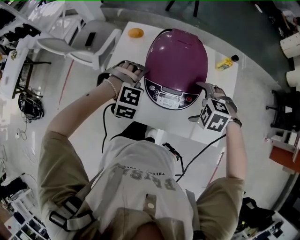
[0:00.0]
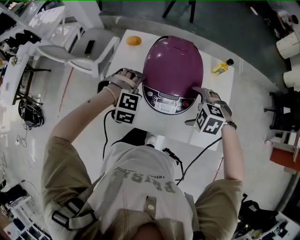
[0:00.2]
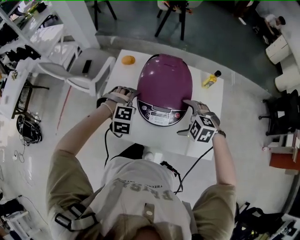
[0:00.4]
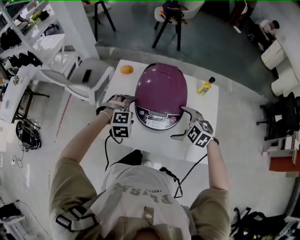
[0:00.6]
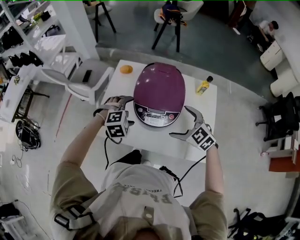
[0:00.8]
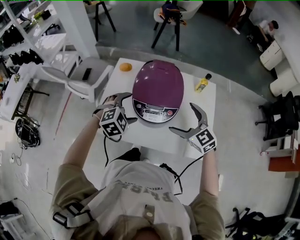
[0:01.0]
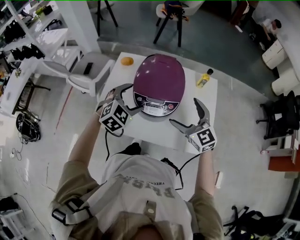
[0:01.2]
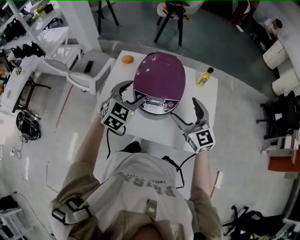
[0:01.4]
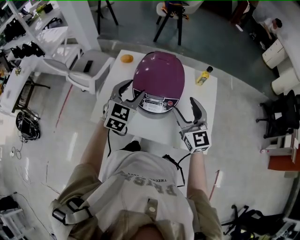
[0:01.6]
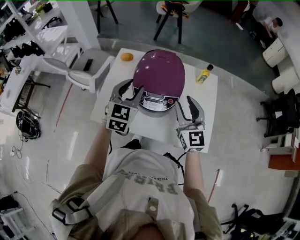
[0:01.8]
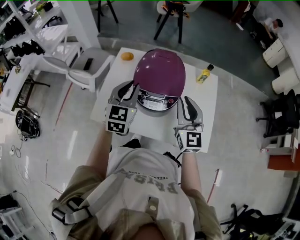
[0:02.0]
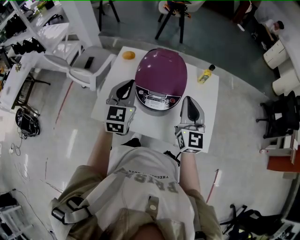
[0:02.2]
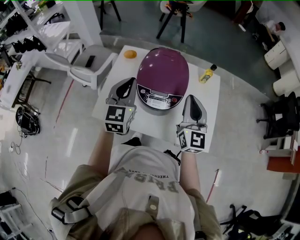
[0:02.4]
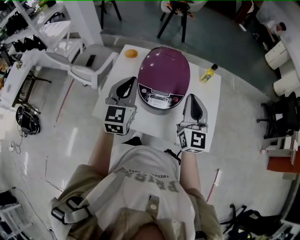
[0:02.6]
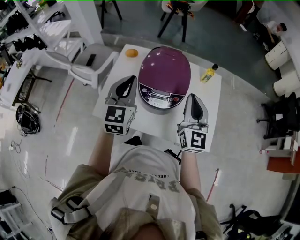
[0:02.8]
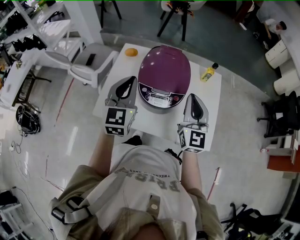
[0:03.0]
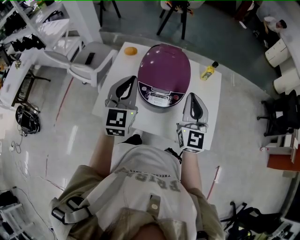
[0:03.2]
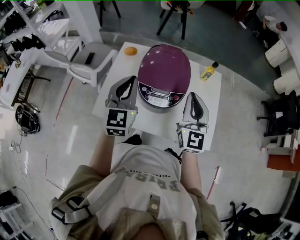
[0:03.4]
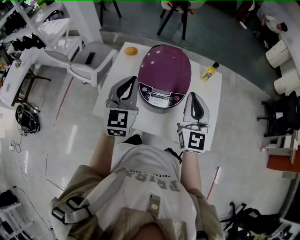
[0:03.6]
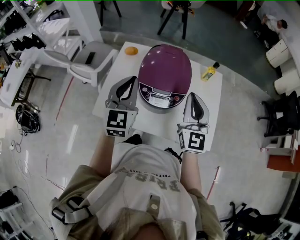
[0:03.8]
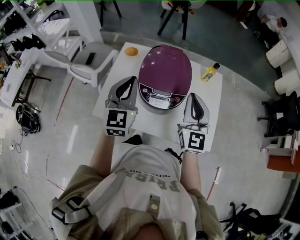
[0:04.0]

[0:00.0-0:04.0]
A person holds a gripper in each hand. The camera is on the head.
0:00.0 to 0:01.4: The grippers both shift upward by approximately 10 cm. The right gripper tips its fingers upward by roughly 60 degrees. Meanwhile the left gripper points its fingers approximately 40 degrees further upward.
0:01.4 to 0:02.6: The grippers both shift upward by roughly 5 cm. The left gripper swivels approximately 30 degrees, and closes up, while the right gripper changes its angle by some 30 degrees, and closes.
0:02.6 to 0:04.0: The grippers move only a little.

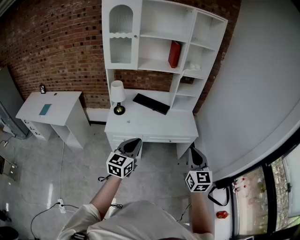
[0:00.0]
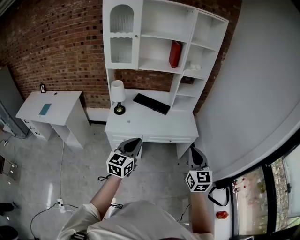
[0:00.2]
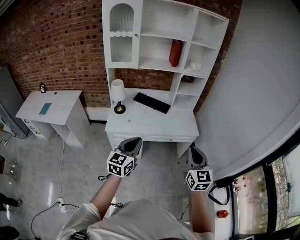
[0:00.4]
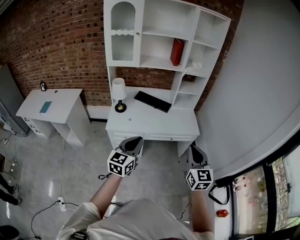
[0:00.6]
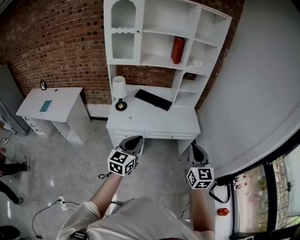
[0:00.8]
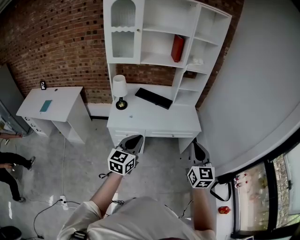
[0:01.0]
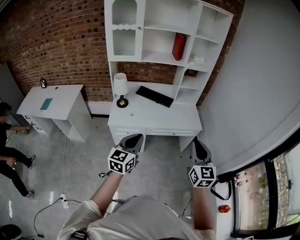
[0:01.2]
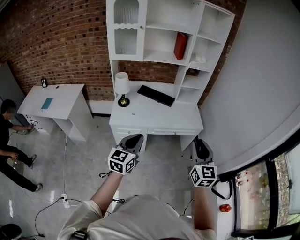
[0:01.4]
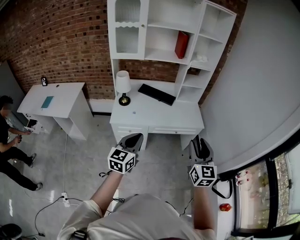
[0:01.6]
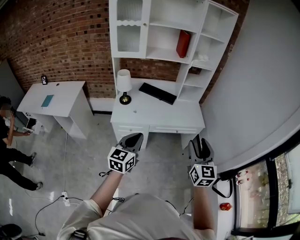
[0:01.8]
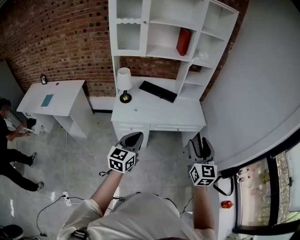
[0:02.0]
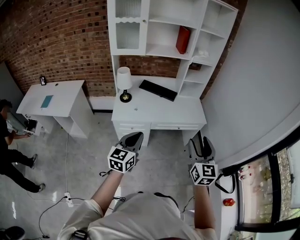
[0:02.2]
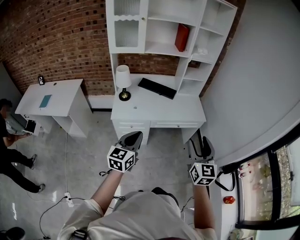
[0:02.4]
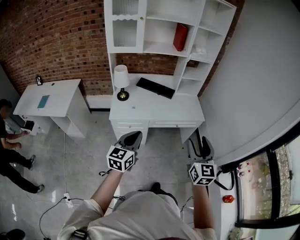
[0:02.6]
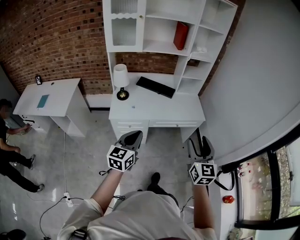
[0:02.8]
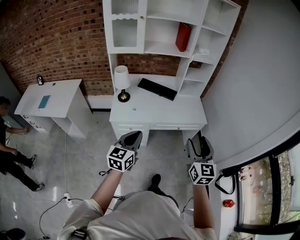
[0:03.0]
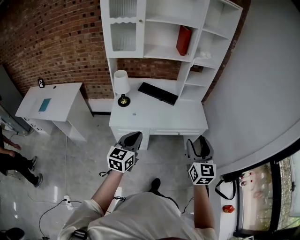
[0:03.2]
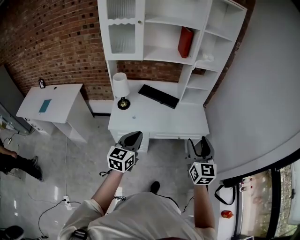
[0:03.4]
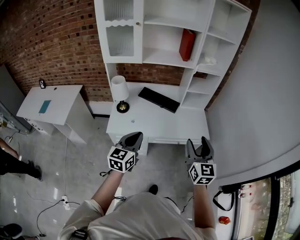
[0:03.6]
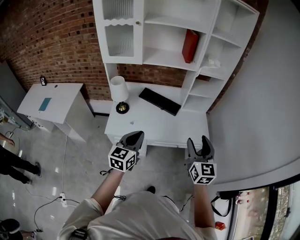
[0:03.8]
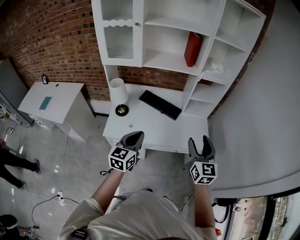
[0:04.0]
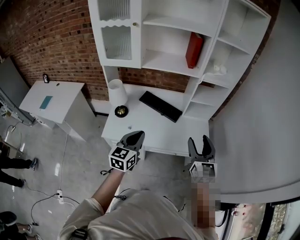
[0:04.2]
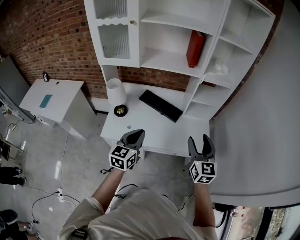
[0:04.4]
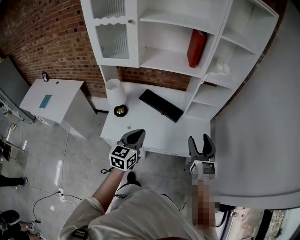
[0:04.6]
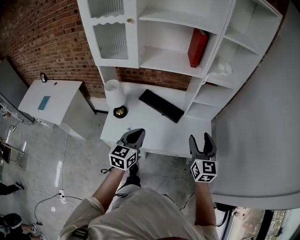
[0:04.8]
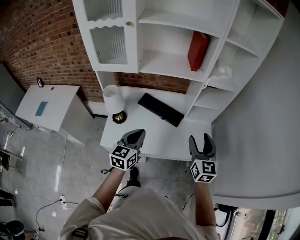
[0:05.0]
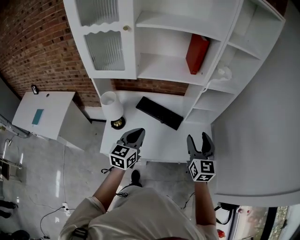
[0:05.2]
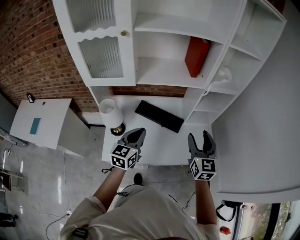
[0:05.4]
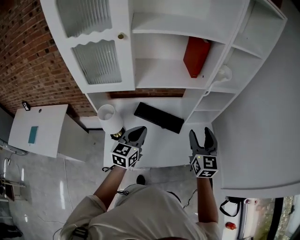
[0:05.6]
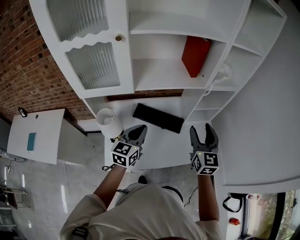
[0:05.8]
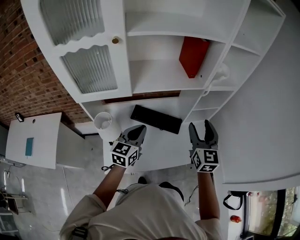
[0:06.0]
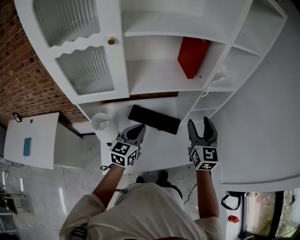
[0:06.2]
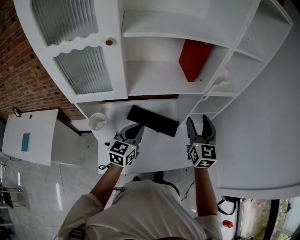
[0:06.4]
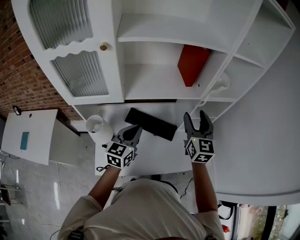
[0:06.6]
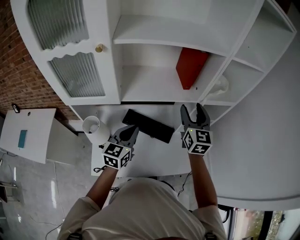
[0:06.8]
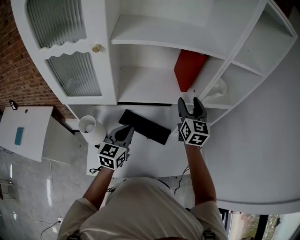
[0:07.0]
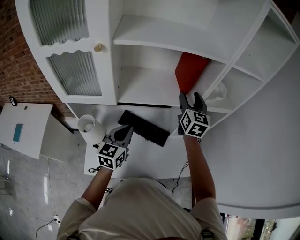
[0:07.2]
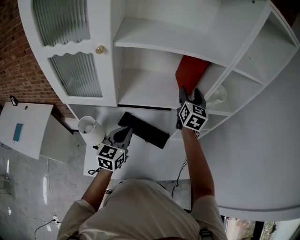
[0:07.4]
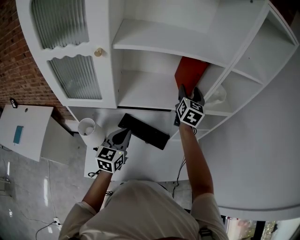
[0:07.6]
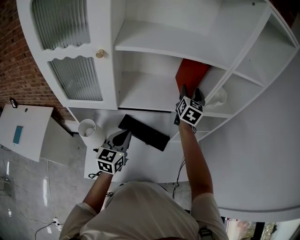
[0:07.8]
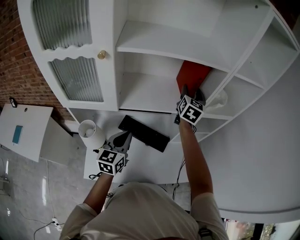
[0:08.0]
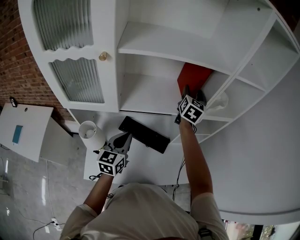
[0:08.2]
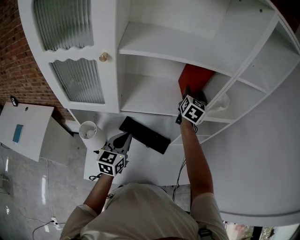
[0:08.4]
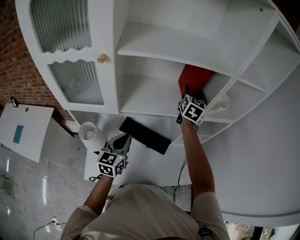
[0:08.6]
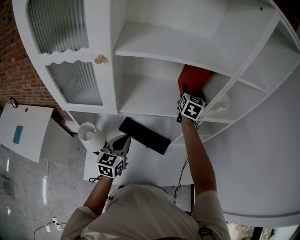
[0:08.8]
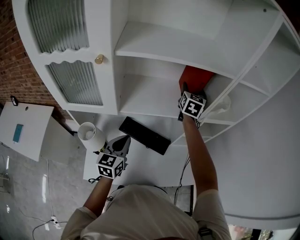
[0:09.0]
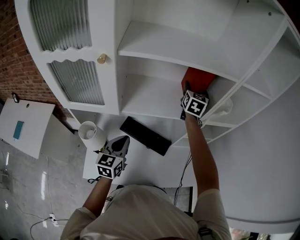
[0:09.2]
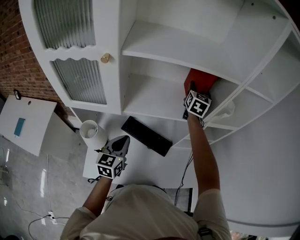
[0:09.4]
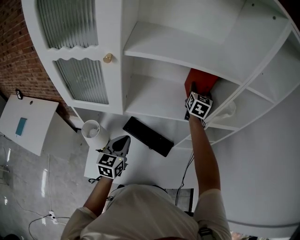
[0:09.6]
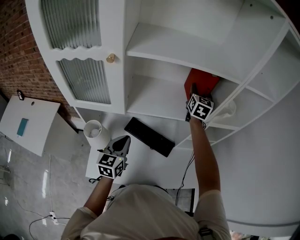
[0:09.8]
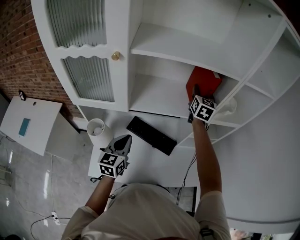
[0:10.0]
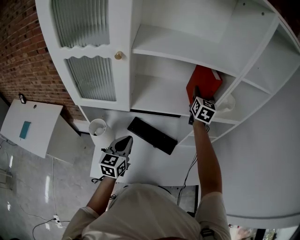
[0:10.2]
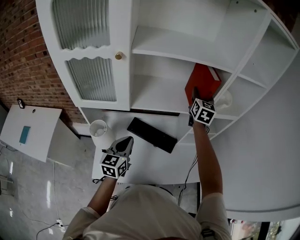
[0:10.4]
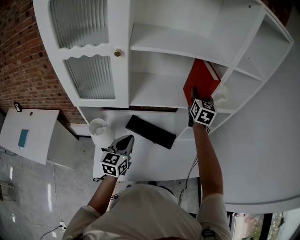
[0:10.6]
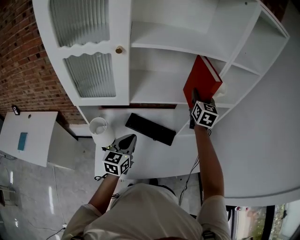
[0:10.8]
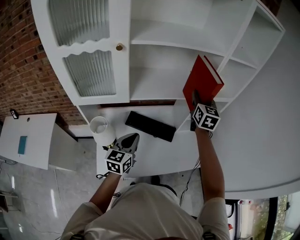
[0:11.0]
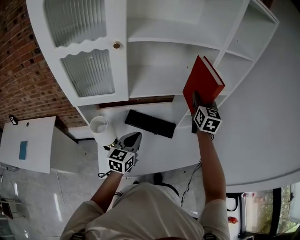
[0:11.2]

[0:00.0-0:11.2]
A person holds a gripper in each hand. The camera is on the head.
0:00.0 to 0:01.6: The right gripper opens.
0:01.6 to 0:03.2: The two grippers go about 10 cm forward.
0:03.2 to 0:04.8: Both grippers travel together forward, roughly 30 cm.
0:04.8 to 0:06.4: Both grippers travel together forward and to the left, approximately 25 cm.
0:06.4 to 0:08.0: The right gripper heads forward, covering approximately 25 cm.
0:08.0 to 0:09.6: The right gripper shifts some 5 cm forward, and closes up.
0:09.6 to 0:11.2: The right gripper shifts approximately 25 cm backward. Meanwhile the left gripper moves backward, approximately 10 cm.

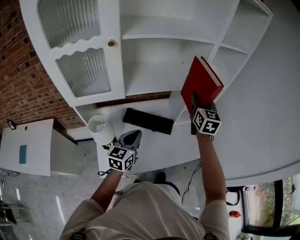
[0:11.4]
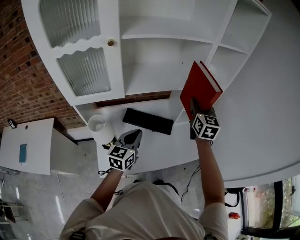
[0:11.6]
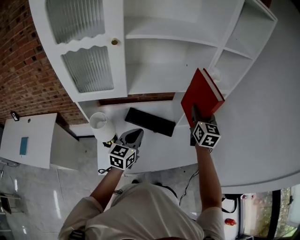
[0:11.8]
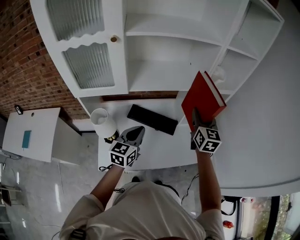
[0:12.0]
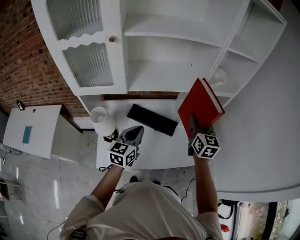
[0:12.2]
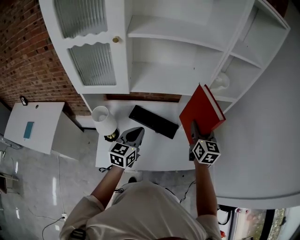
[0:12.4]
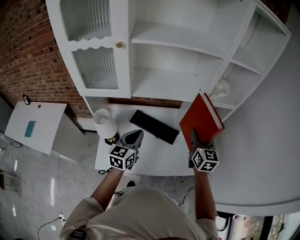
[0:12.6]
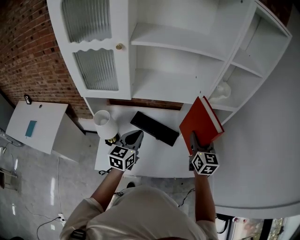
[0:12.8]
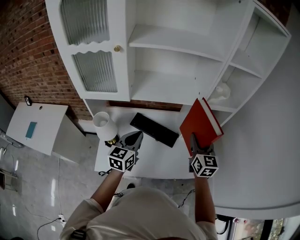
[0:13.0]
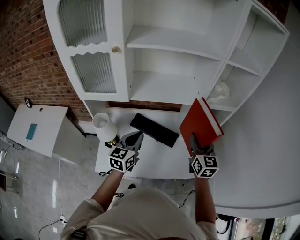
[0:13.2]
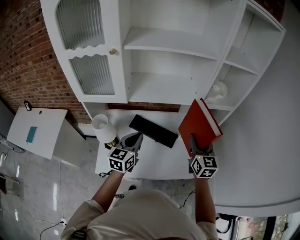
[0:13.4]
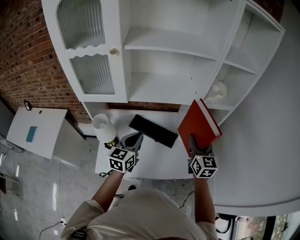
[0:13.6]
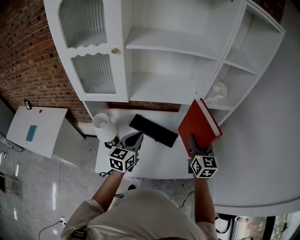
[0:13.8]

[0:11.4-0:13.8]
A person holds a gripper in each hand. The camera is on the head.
0:11.4 to 0:12.6: The right gripper goes about 10 cm downward and backward.
0:12.6 to 0:13.8: The grippers stay close to where they were, moving slightly.

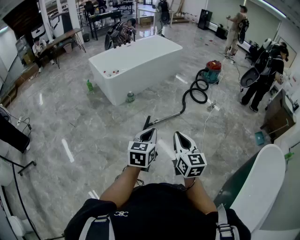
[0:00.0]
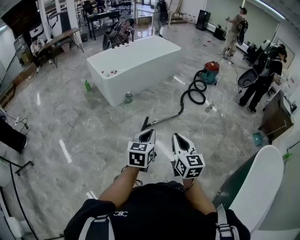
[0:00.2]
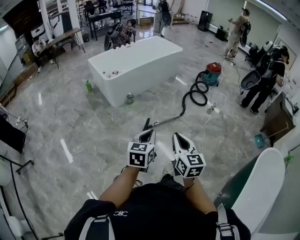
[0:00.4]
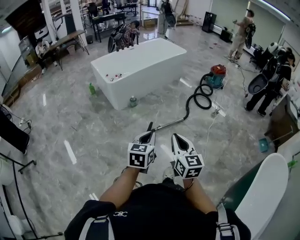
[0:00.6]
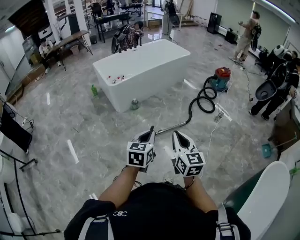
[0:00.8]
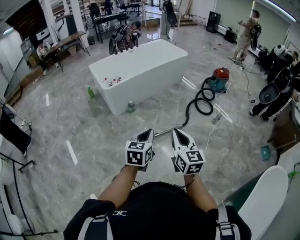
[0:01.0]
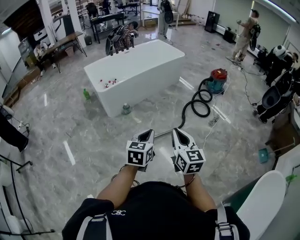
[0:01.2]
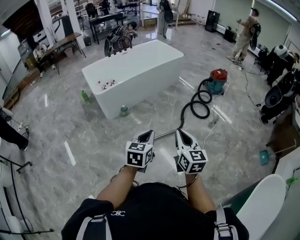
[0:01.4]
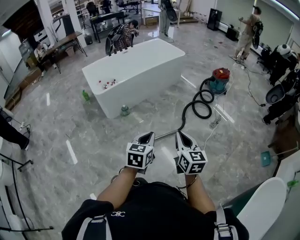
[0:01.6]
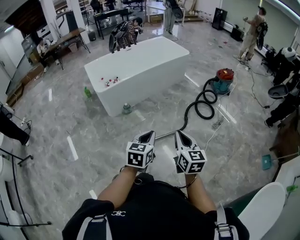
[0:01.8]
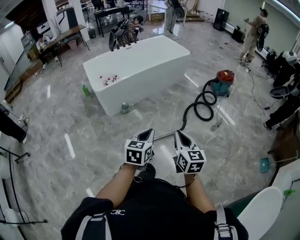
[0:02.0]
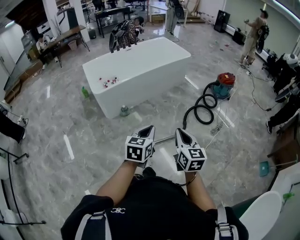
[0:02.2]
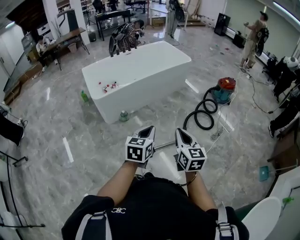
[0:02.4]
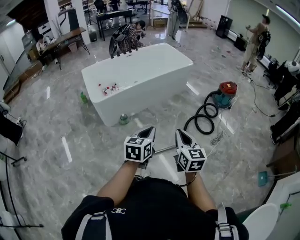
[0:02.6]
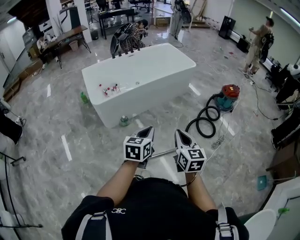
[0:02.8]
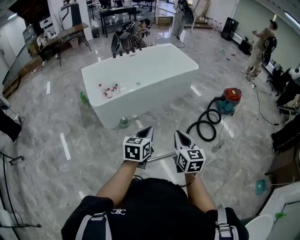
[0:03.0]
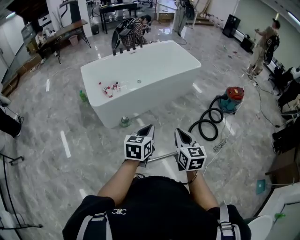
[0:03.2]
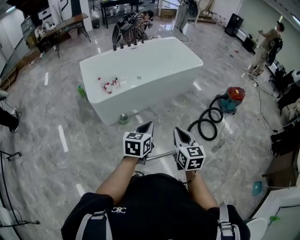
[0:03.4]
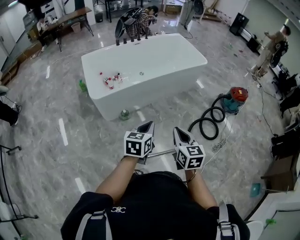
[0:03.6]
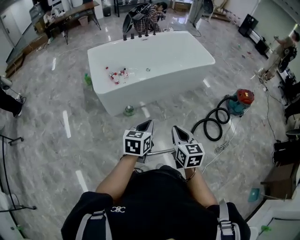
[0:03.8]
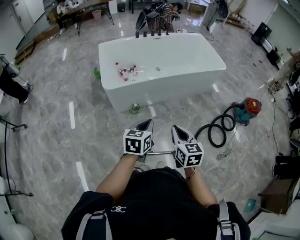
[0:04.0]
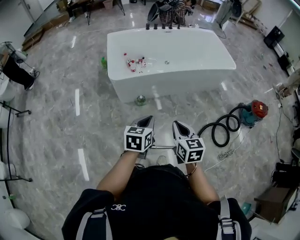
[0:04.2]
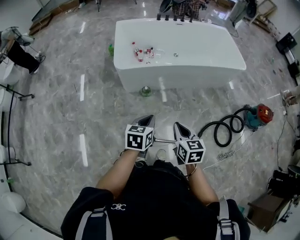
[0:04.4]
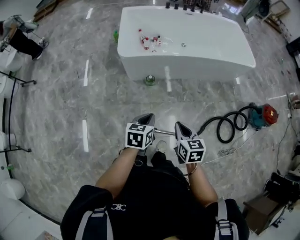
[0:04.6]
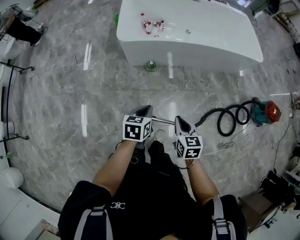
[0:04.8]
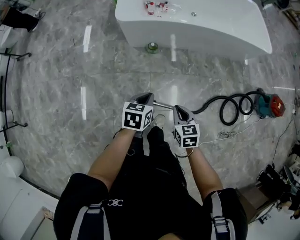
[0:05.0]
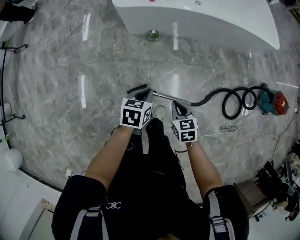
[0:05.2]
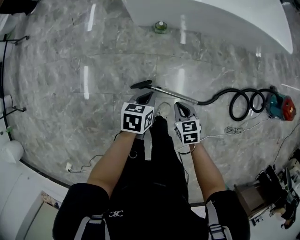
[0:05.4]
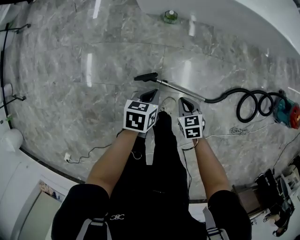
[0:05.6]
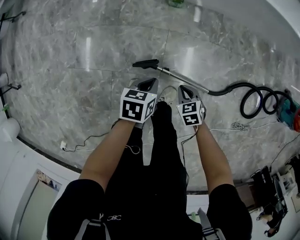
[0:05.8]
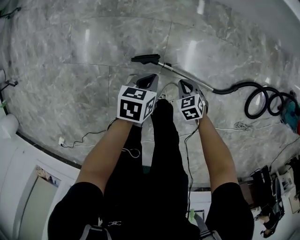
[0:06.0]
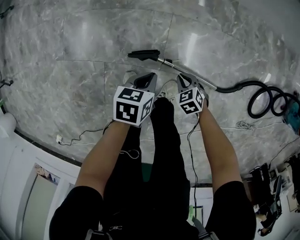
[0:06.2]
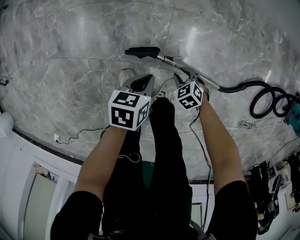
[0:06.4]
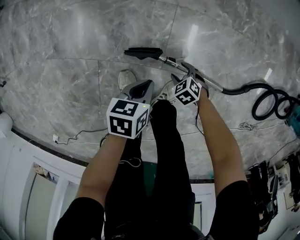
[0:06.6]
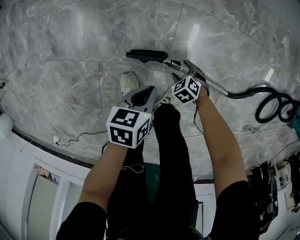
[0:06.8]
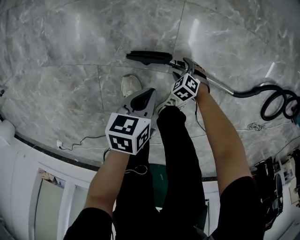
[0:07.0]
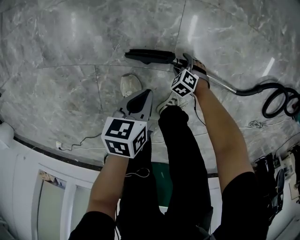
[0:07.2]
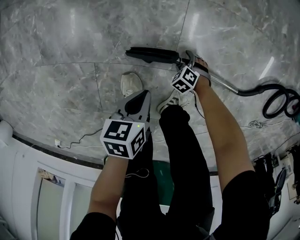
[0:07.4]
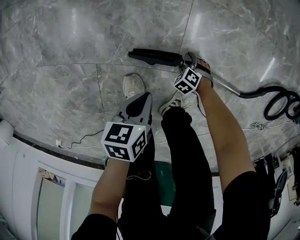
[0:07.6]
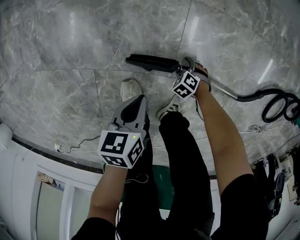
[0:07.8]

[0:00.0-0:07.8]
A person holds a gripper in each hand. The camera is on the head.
0:00.0 to 0:01.6: Both grippers move forward and to the right, some 35 cm.
0:01.6 to 0:03.2: Both grippers travel together forward, some 35 cm.
0:03.2 to 0:04.6: The grippers both shift downward by some 15 cm. The left gripper turns by some 30 degrees. The right gripper rotates some 30 degrees.
0:04.6 to 0:06.2: Both grippers travel together downward, about 60 cm. The left gripper changes its angle by about 20 degrees. Meanwhile the right gripper turns by some 50 degrees.
0:06.2 to 0:07.8: The left gripper is displaced downward by approximately 15 cm; the right gripper shifts approximately 30 cm downward, rotates some 30 degrees, and opens.
